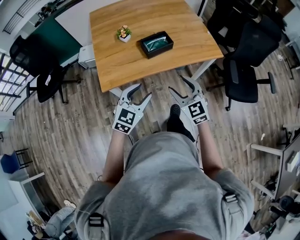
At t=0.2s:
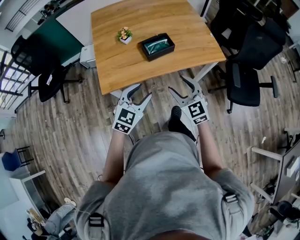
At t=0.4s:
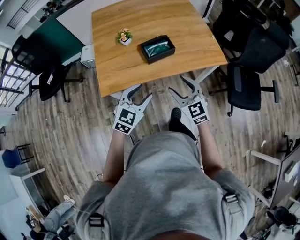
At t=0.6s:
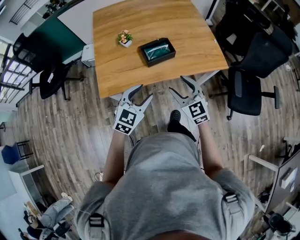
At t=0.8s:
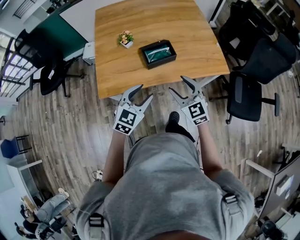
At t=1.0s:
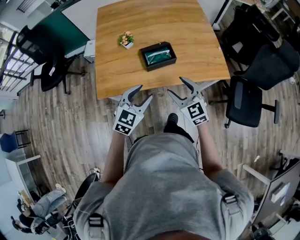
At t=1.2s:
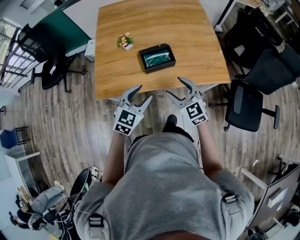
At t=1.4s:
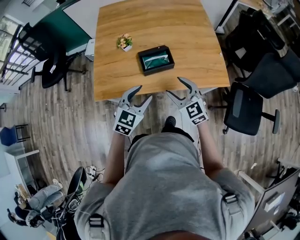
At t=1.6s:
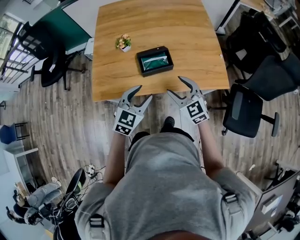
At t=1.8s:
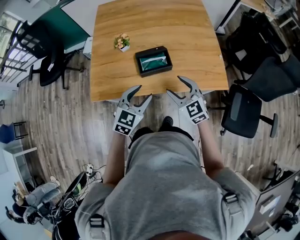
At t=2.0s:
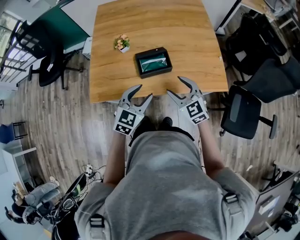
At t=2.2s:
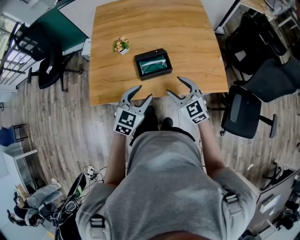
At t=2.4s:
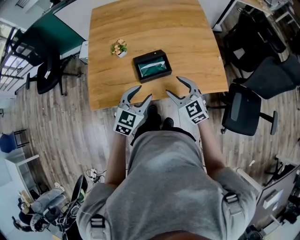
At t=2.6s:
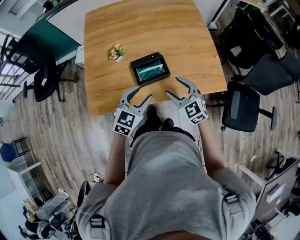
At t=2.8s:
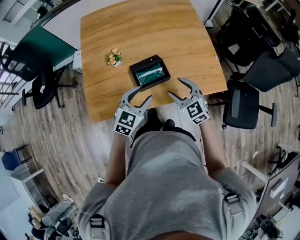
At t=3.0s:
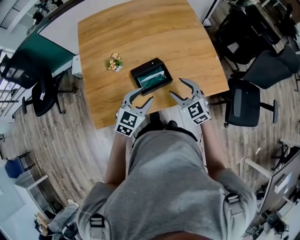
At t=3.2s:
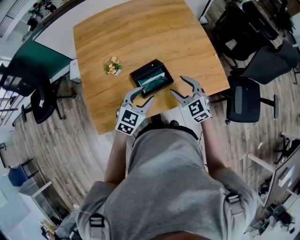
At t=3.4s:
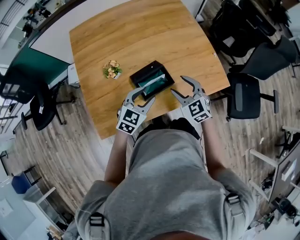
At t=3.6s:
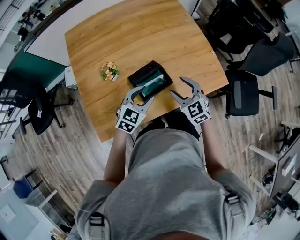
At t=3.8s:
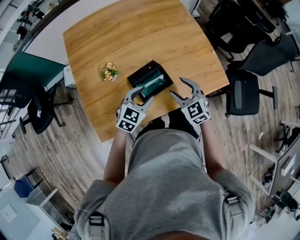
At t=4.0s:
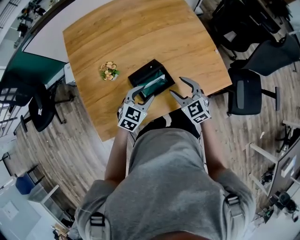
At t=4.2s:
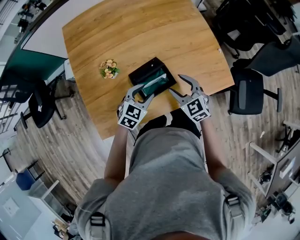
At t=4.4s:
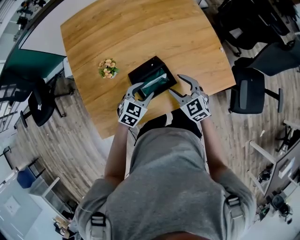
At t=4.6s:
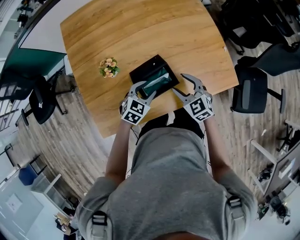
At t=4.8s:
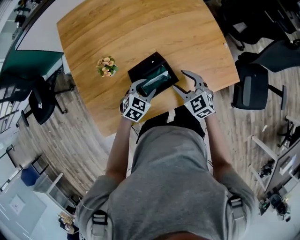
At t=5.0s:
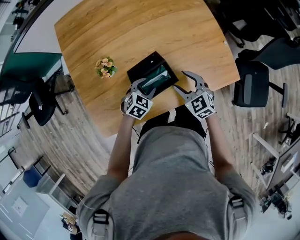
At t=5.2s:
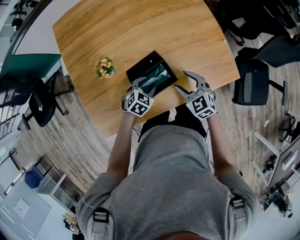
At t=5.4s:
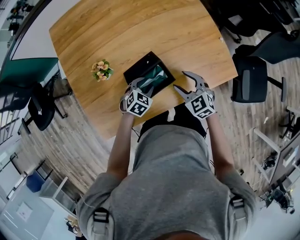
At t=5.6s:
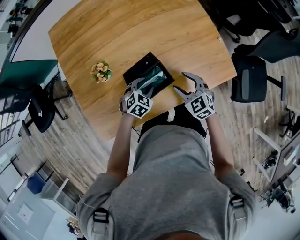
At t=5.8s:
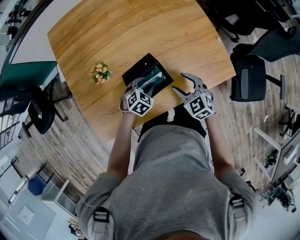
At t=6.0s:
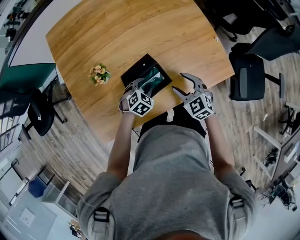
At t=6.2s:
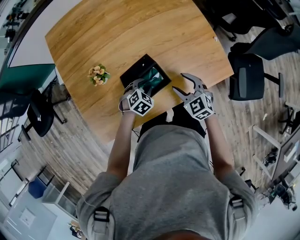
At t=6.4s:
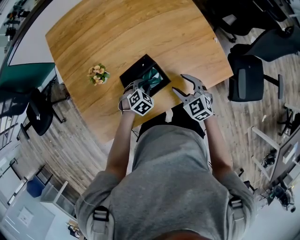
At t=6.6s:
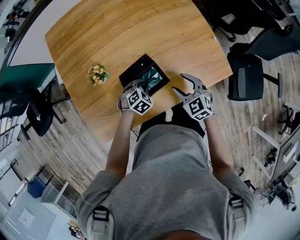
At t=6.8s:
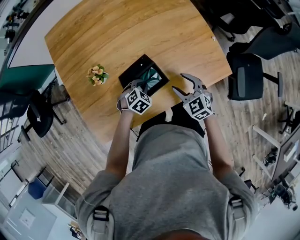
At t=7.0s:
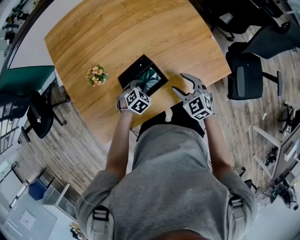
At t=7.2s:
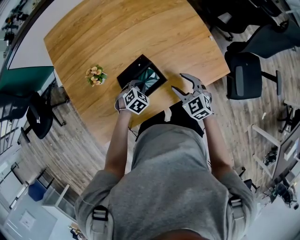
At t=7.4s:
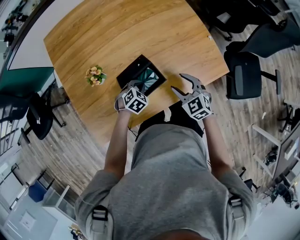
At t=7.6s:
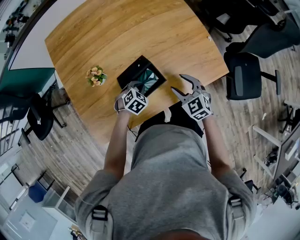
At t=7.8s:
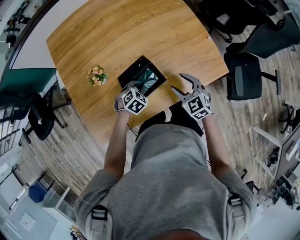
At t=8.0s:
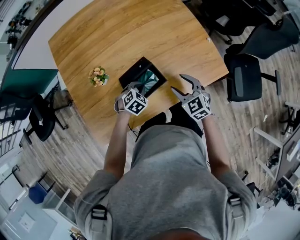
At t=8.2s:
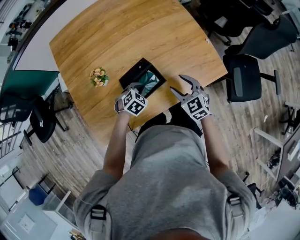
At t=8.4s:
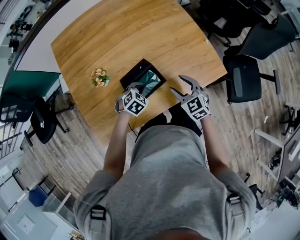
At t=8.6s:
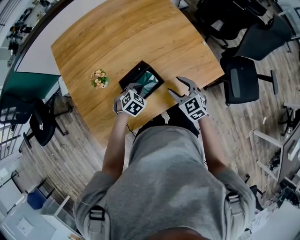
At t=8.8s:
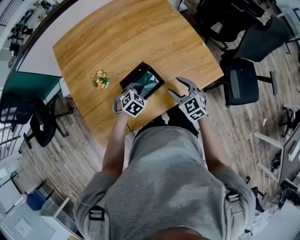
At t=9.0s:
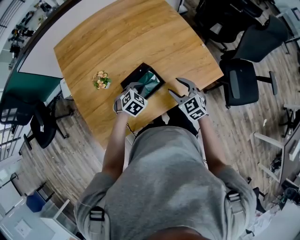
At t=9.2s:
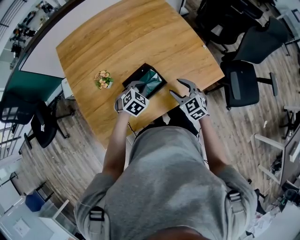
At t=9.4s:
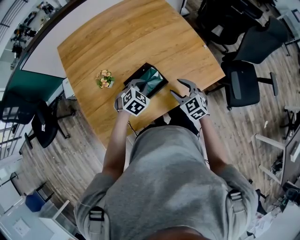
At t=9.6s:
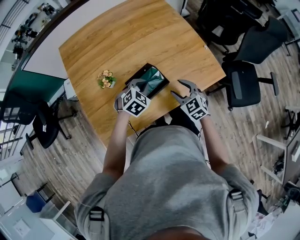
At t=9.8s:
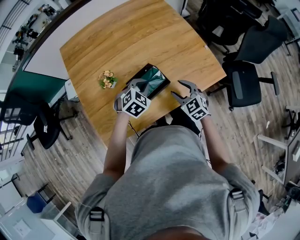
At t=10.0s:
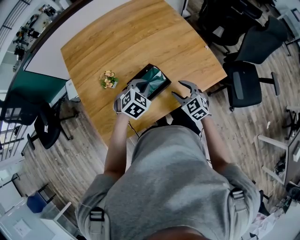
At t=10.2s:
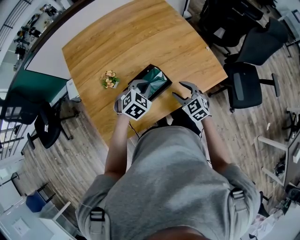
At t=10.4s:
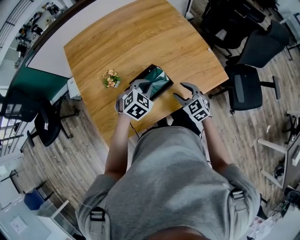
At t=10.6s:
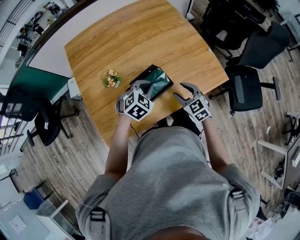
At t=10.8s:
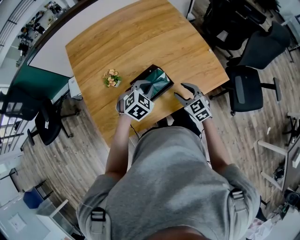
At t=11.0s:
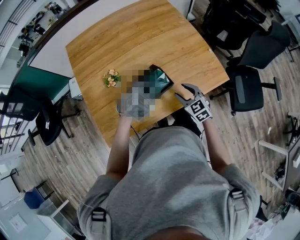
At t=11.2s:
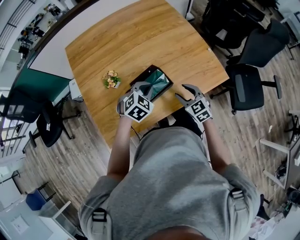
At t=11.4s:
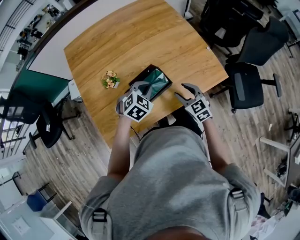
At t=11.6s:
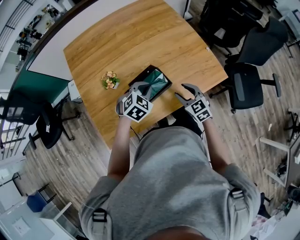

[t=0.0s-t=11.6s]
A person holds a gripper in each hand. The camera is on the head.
t=0.0s to t=1.4s: The right gripper moves forward, some 20 cm, while the left gripper travels forward and to the right by approximately 20 cm.
t=1.4s to t=2.8s: The two grippers go about 10 cm forward.
t=2.8s to t=4.4s: The left gripper shifts some 15 cm downward and forward; the right gripper travels forward and downward by approximately 10 cm.
t=4.4s to t=5.8s: The left gripper shifts about 10 cm downward; the right gripper changes place by approximately 5 cm.
t=5.8s to t=7.2s: The left gripper closes up.
t=7.2s to t=8.8s: The left gripper travels upward by some 5 cm.
t=8.8s to t=10.2s: The left gripper heads upward, covering about 10 cm.
t=10.2s to t=11.6s: The grippers stay close to where they were, moving slightly.

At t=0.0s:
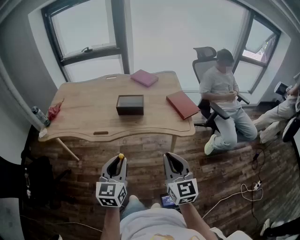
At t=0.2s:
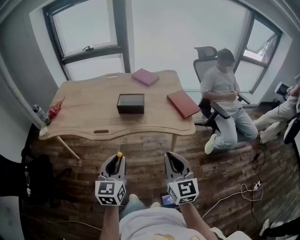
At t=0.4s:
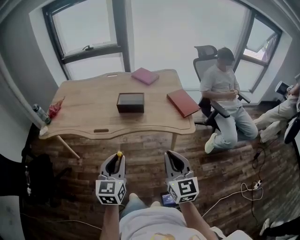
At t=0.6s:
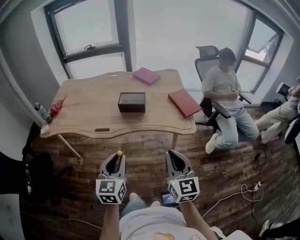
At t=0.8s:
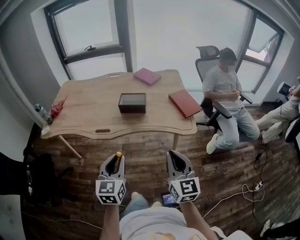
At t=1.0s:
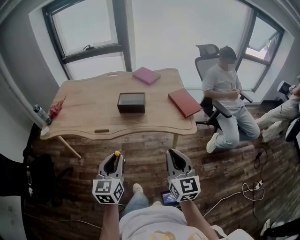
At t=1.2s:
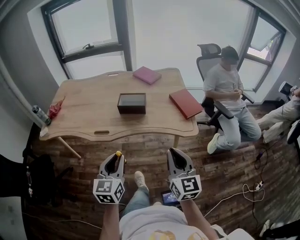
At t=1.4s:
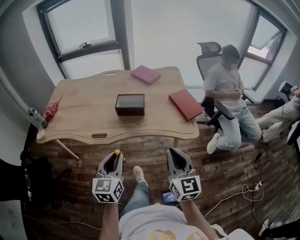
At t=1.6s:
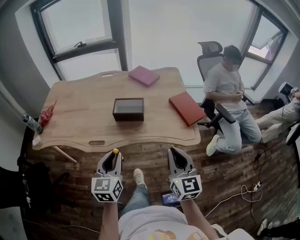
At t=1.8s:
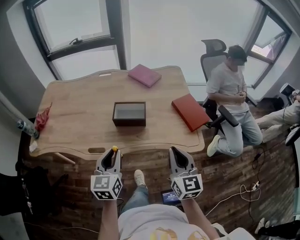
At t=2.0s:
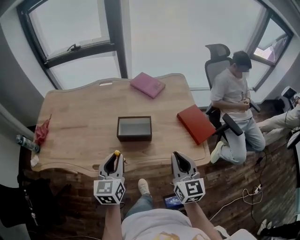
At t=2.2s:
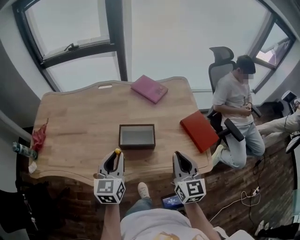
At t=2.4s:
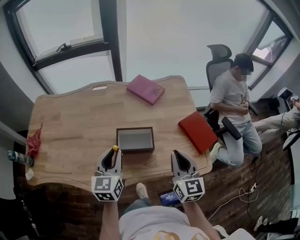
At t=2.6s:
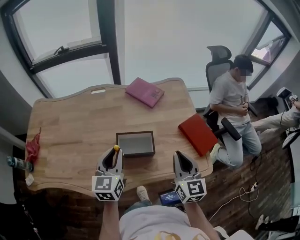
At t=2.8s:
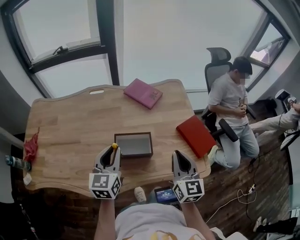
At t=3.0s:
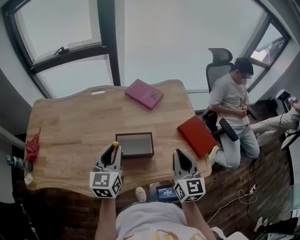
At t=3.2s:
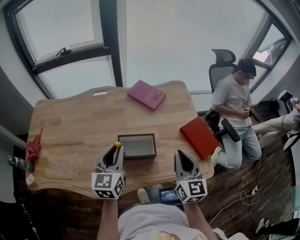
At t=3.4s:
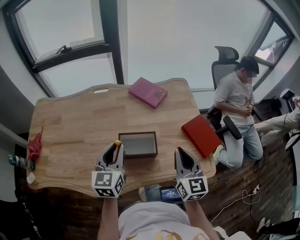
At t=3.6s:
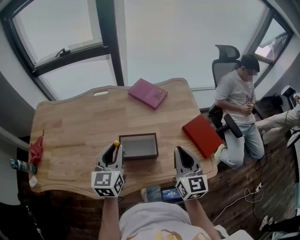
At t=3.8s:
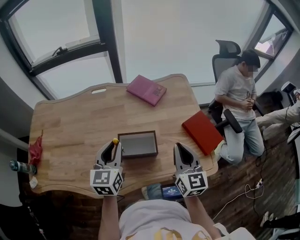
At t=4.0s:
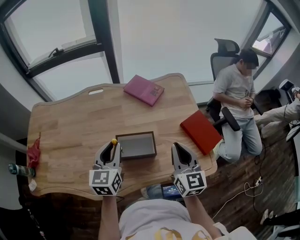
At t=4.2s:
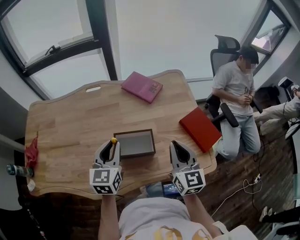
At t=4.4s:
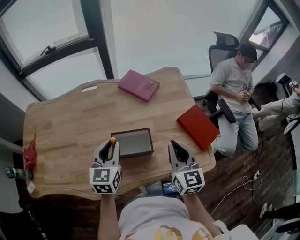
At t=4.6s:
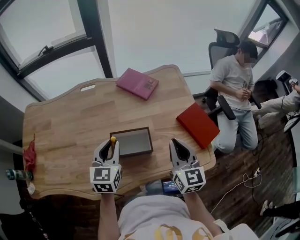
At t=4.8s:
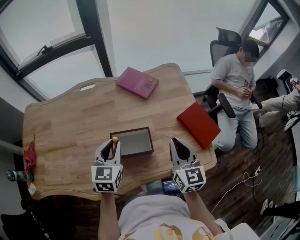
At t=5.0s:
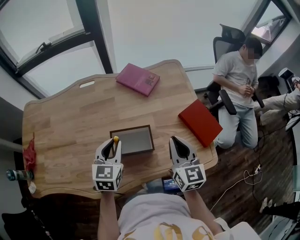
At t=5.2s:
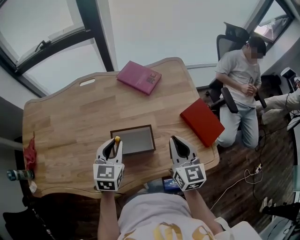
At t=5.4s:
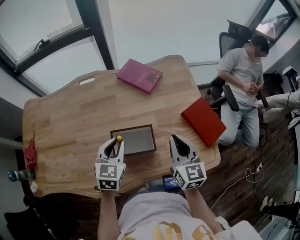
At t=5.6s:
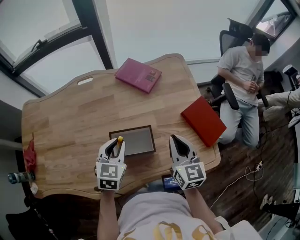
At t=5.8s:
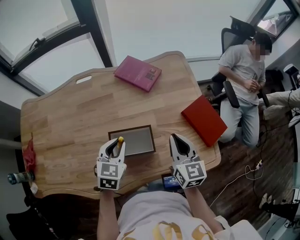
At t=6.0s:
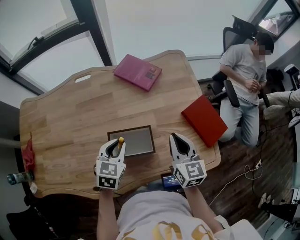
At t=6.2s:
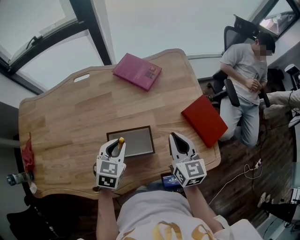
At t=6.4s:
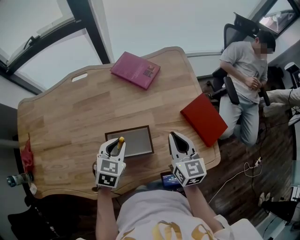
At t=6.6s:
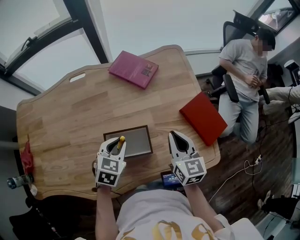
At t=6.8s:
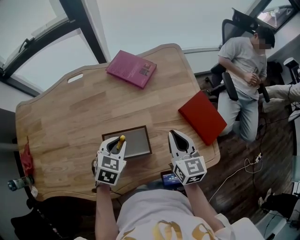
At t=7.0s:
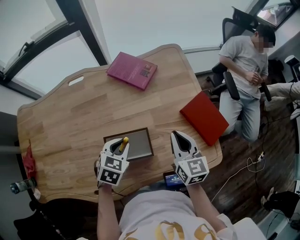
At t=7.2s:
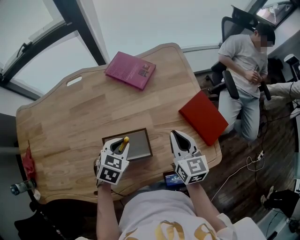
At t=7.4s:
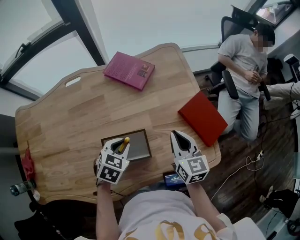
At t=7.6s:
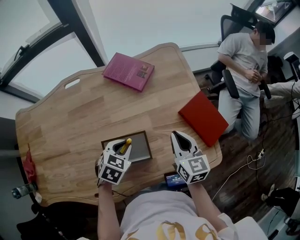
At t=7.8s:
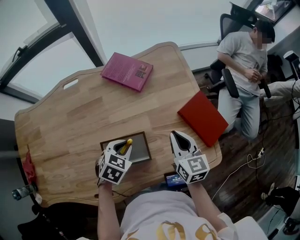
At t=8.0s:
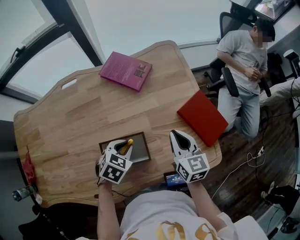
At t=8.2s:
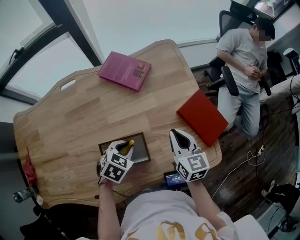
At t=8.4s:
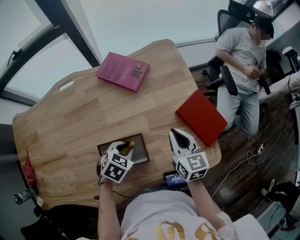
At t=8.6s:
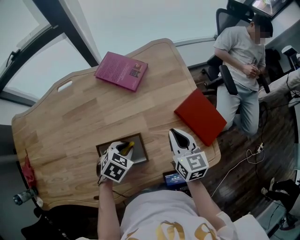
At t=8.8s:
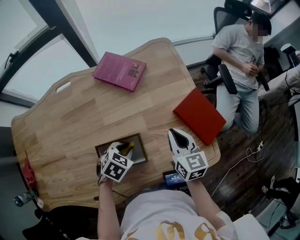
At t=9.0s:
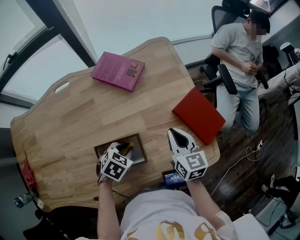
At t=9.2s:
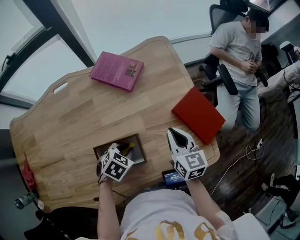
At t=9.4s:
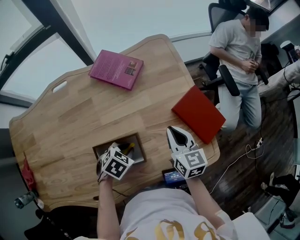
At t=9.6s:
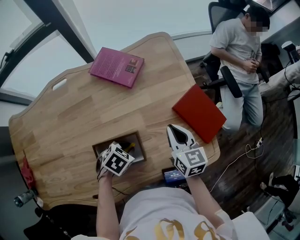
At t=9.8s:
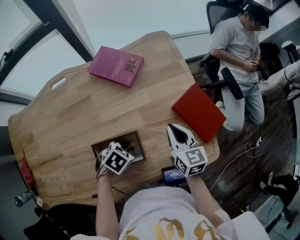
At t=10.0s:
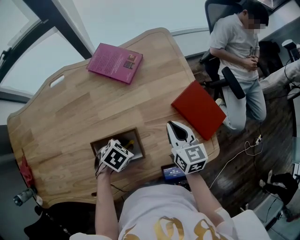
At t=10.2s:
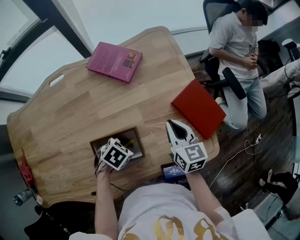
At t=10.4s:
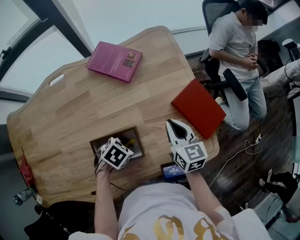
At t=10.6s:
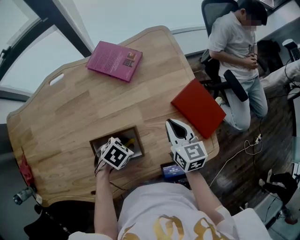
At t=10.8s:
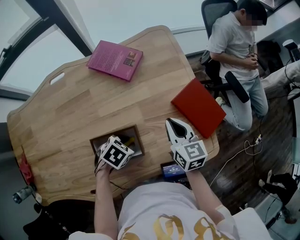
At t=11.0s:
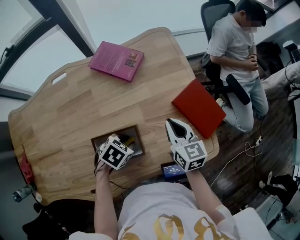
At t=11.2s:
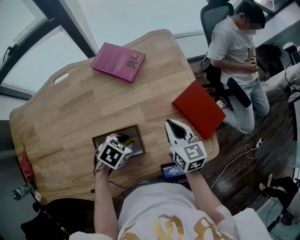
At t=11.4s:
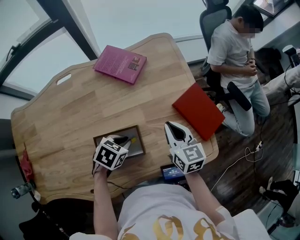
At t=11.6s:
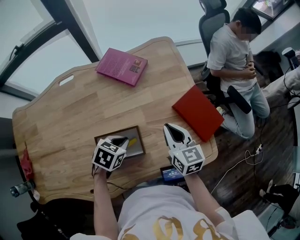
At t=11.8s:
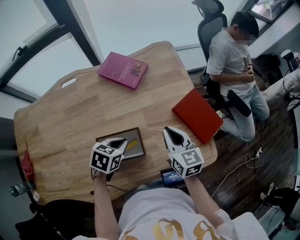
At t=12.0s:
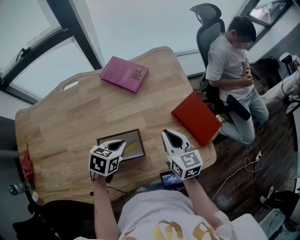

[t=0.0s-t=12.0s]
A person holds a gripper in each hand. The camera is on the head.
t=0.0s to t=1.6s: Both grippers travel together forward, approximately 15 cm.
t=1.6s to t=3.0s: Both grippers move forward, roughly 30 cm.
t=3.0s to t=4.4s: The left gripper moves about 5 cm.
t=4.4s to t=6.0s: The left gripper shifts some 10 cm downward, and changes its angle by approximately 20 degrees; the right gripper moves downward and forward, some 10 cm.
t=6.0s to t=7.6s: The right gripper changes place by approximately 5 cm. The left gripper moves downward, roughly 5 cm, and swivels approximately 20 degrees.
t=7.6s to t=9.0s: The left gripper changes place by about 5 cm.
t=9.0s to t=10.4s: The grippers move only a little.
t=10.4s to t=12.0s: The left gripper shifts approximately 10 cm upward, and turns by roughly 30 degrees, while the right gripper ends up about 5 cm from where it was.
